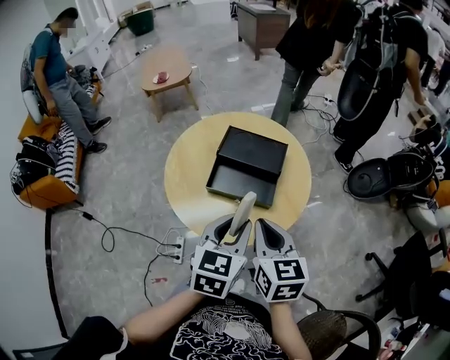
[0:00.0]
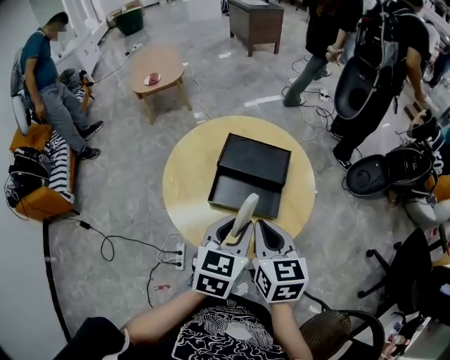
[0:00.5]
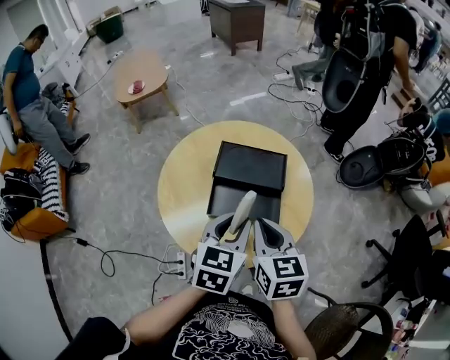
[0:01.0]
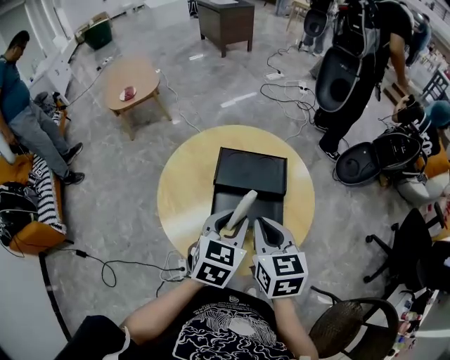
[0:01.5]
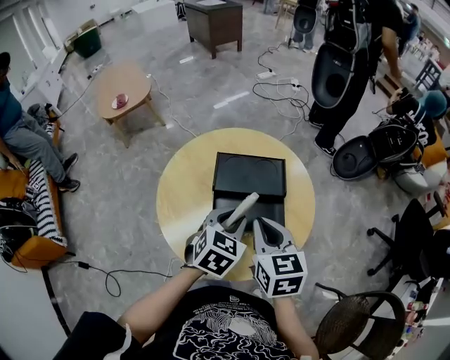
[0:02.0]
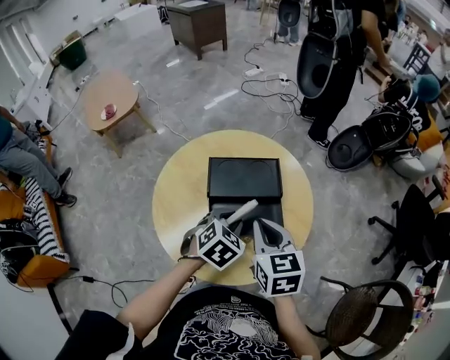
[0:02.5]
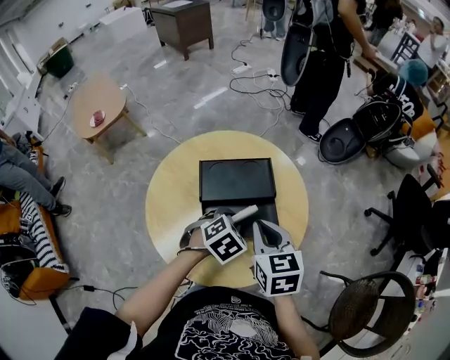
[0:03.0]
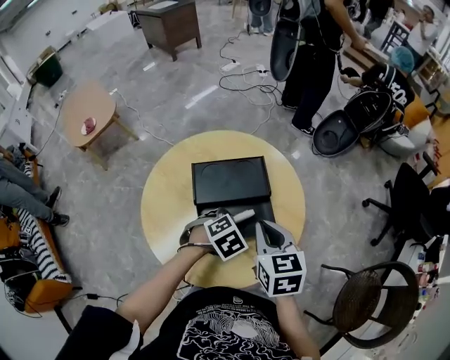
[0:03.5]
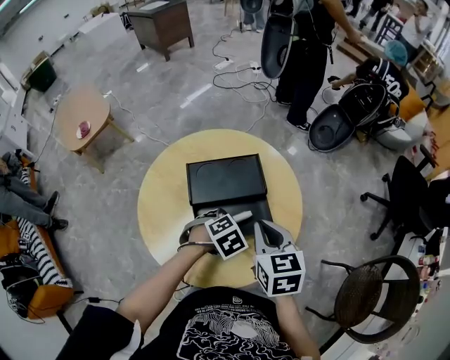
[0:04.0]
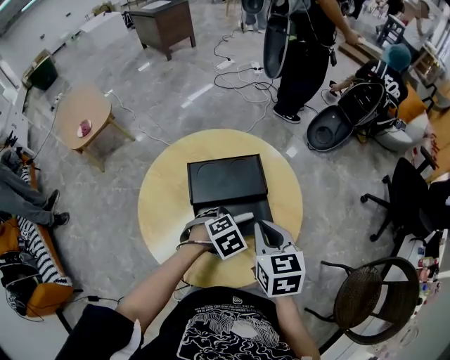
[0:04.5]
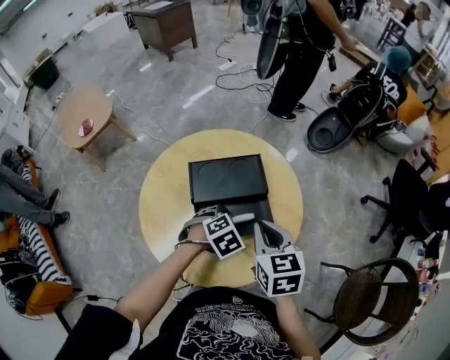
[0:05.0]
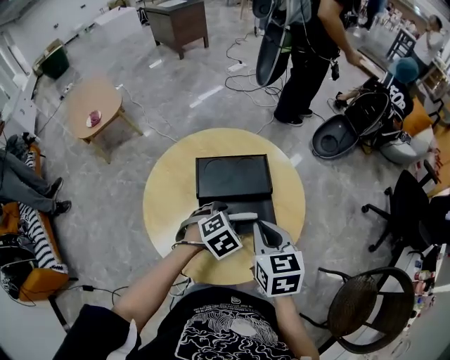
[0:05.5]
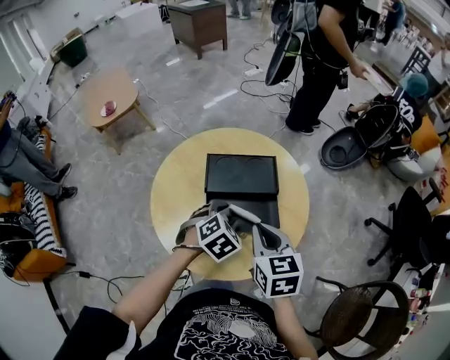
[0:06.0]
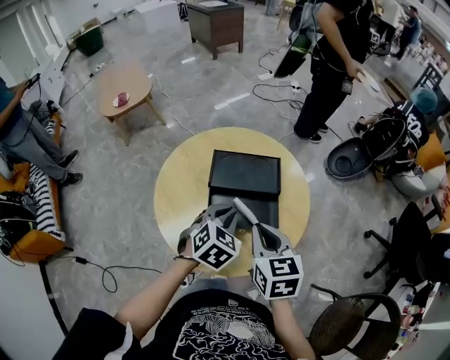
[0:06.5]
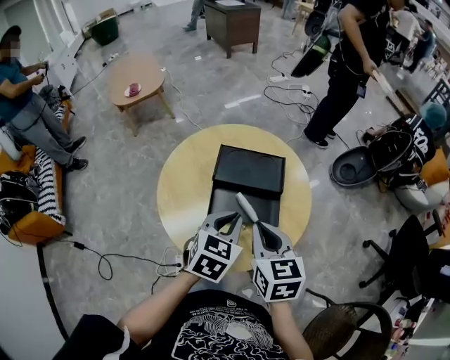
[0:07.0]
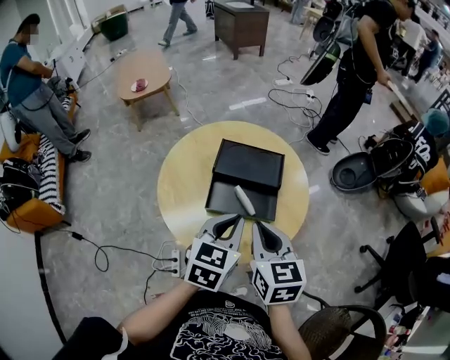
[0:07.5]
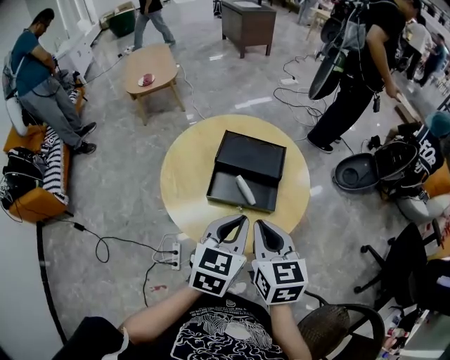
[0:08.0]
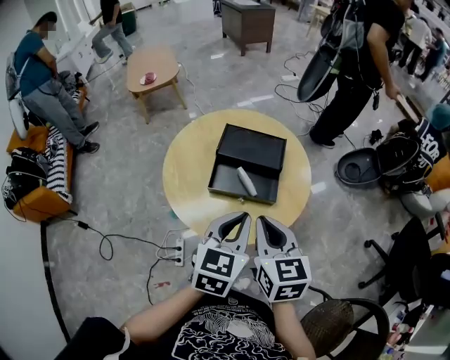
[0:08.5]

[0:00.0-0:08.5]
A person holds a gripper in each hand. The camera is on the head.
0:00.0 to 0:02.0: The left gripper shifts some 20 cm forward, downward and to the left, and turns by some 30 degrees, while the right gripper travels forward and to the left by approximately 15 cm.
0:02.0 to 0:04.0: The right gripper shifts by approximately 5 cm. The left gripper goes some 10 cm downward, and tilts its fingers some 30 degrees downward.
0:04.0 to 0:06.5: The right gripper moves roughly 5 cm; the left gripper shifts about 10 cm upward, points its fingers about 30 degrees further upward, and opens, then closes once more.
0:06.5 to 0:08.5: The right gripper heads backward, covering some 10 cm. The left gripper moves backward and upward, roughly 15 cm, and turns by roughly 30 degrees.

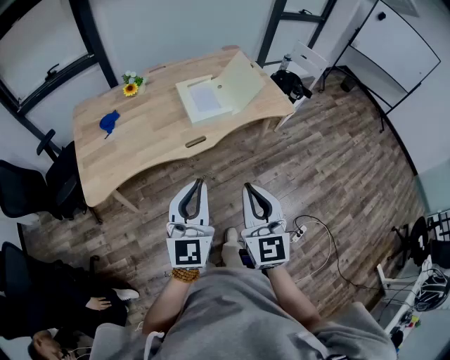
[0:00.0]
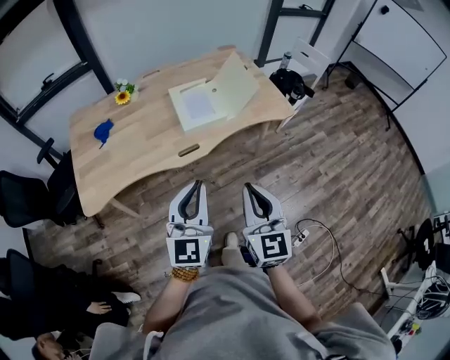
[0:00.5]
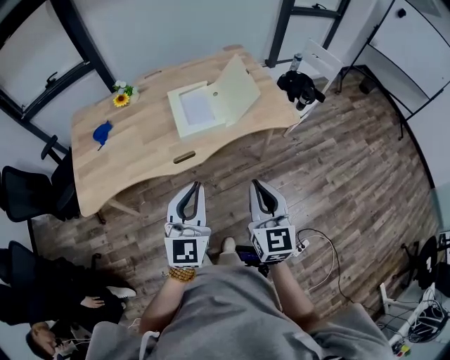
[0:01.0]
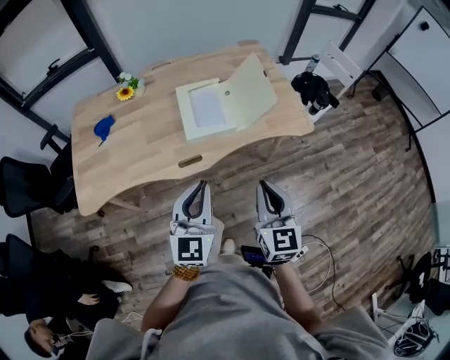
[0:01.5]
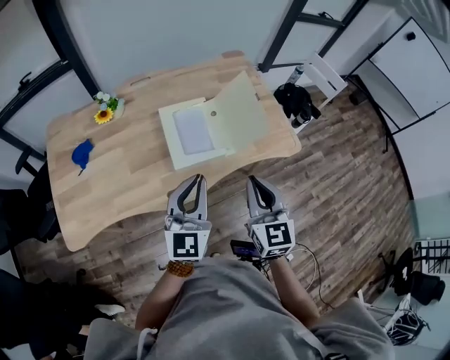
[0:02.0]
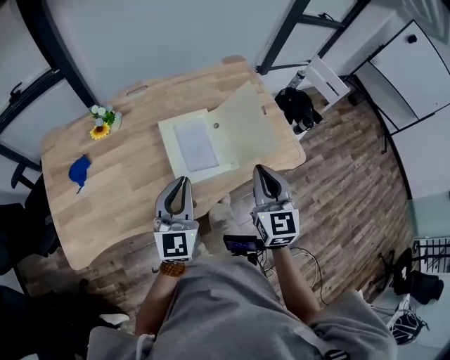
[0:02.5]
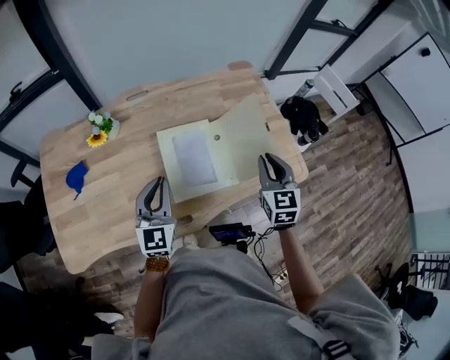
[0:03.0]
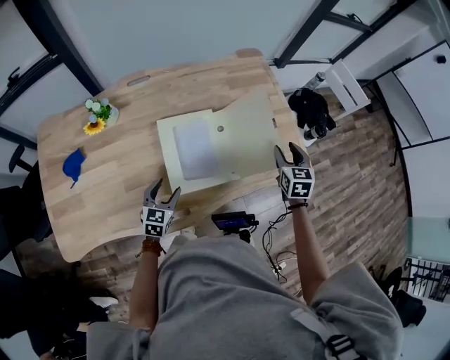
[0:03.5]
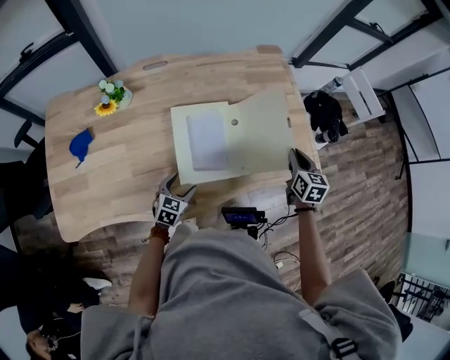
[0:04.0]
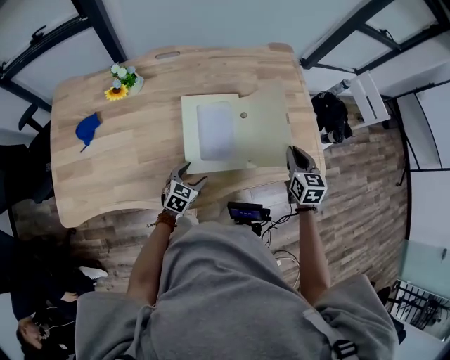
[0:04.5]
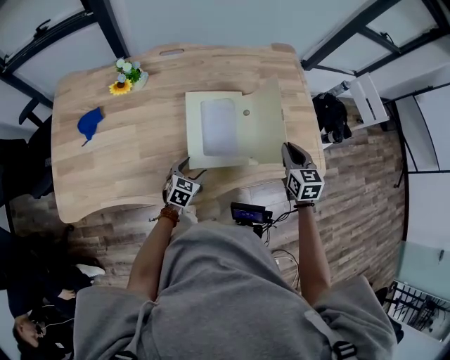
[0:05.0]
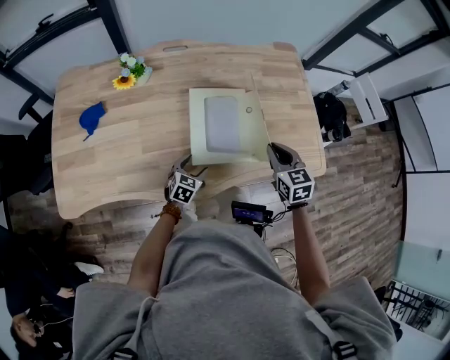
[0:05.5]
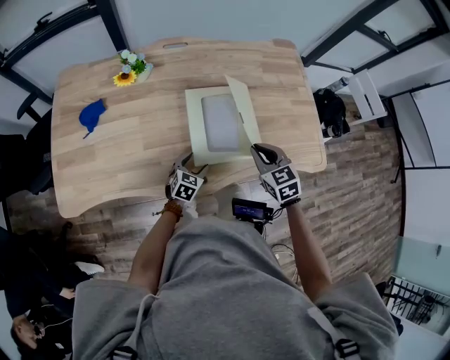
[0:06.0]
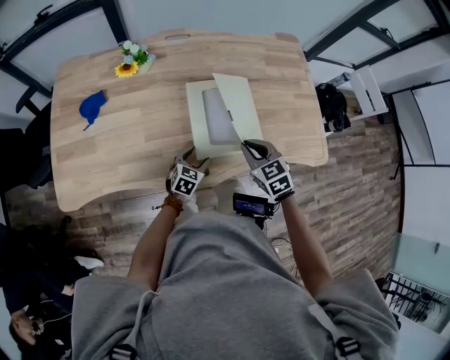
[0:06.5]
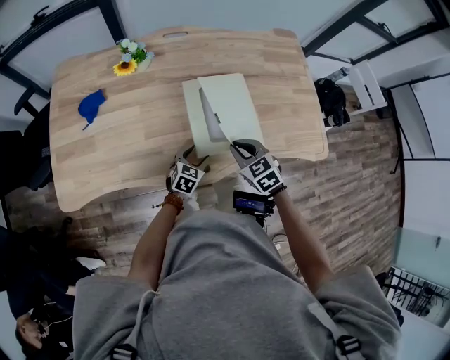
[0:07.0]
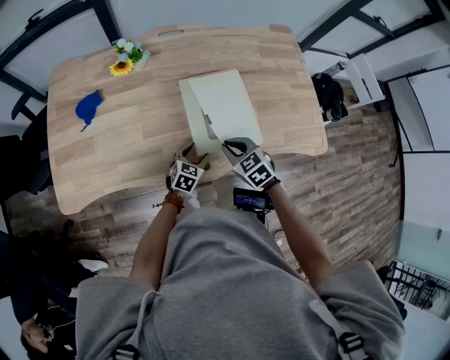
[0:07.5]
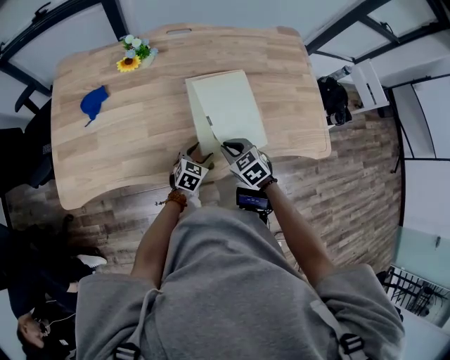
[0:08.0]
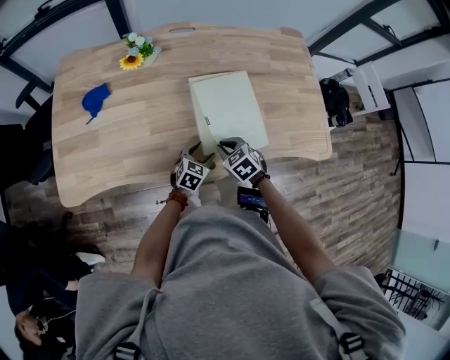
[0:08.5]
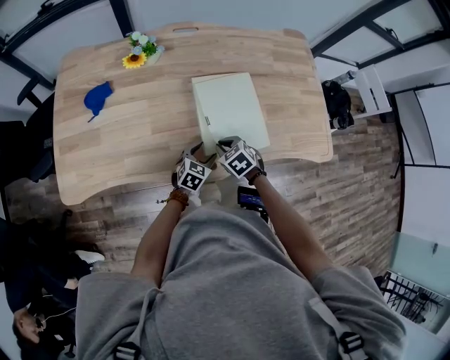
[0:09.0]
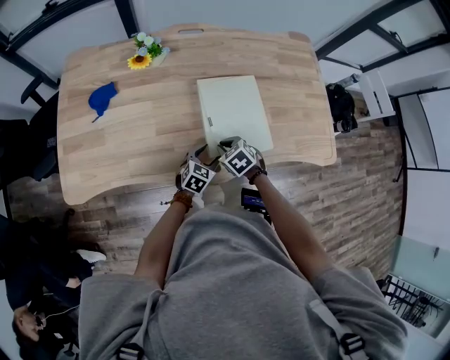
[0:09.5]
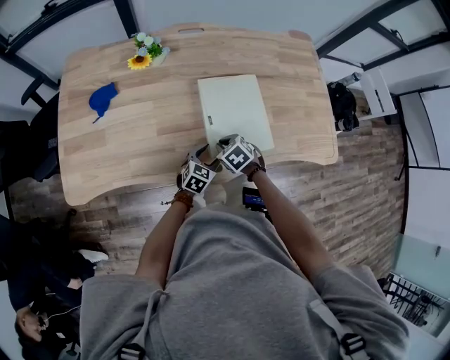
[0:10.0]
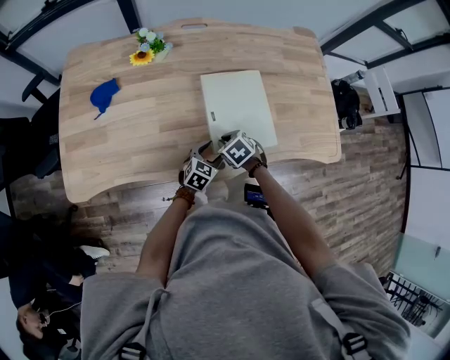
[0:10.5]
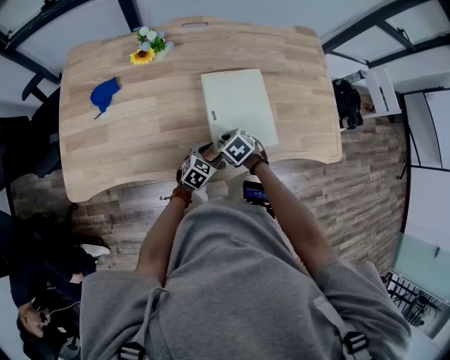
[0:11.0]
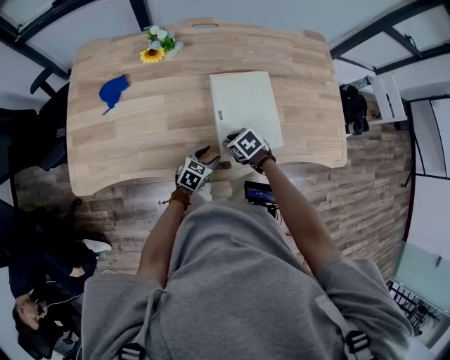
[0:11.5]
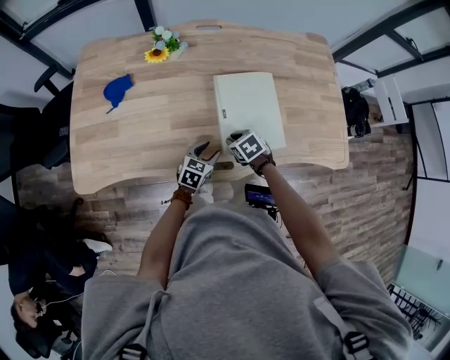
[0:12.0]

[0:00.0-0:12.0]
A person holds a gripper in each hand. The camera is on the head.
0:00.0 to 0:02.0: Both grippers move forward, roughly 35 cm.
0:02.0 to 0:04.0: The left gripper shifts approximately 35 cm downward, tilts its fingers about 40 degrees downward, and opens up; the right gripper heads forward, downward and to the right, covering roughly 35 cm, changes its angle by approximately 30 degrees, and opens, then closes once more.
0:04.0 to 0:06.0: The right gripper moves to the left and backward, roughly 25 cm, and rotates some 40 degrees.
0:06.0 to 0:08.0: The right gripper heads to the left and downward, covering some 15 cm.
0:08.0 to 0:10.0: The right gripper goes some 5 cm downward.
0:10.0 to 0:12.0: The left gripper heads to the left, covering about 5 cm.

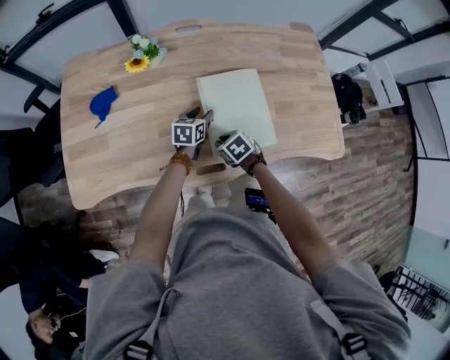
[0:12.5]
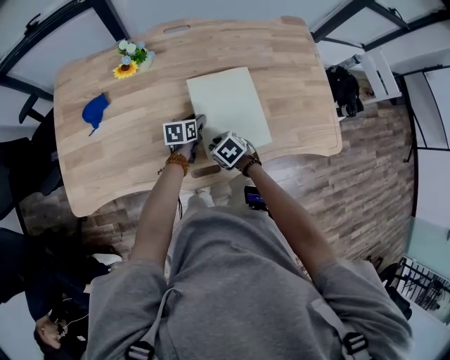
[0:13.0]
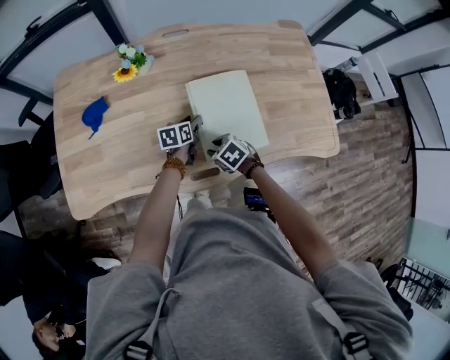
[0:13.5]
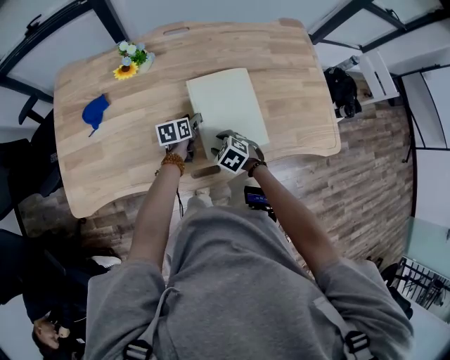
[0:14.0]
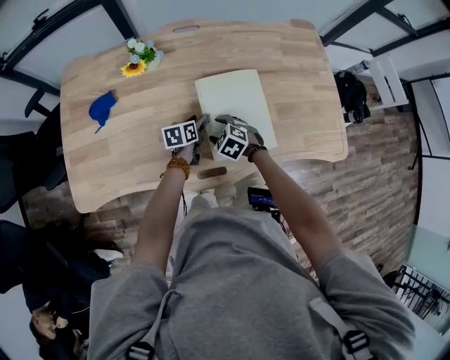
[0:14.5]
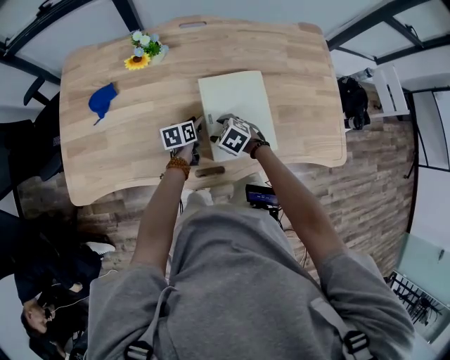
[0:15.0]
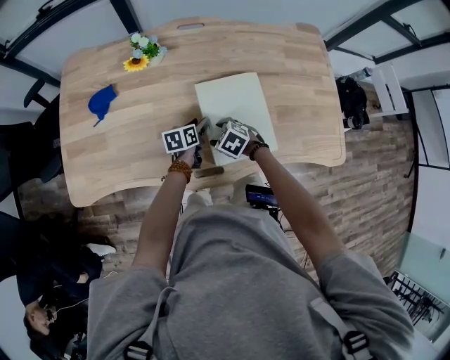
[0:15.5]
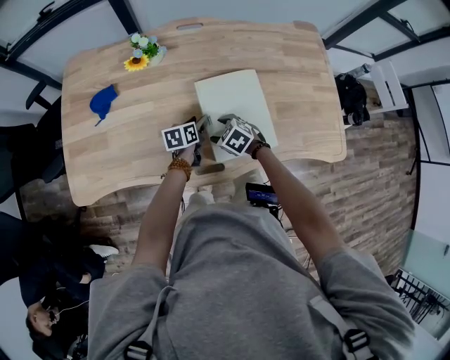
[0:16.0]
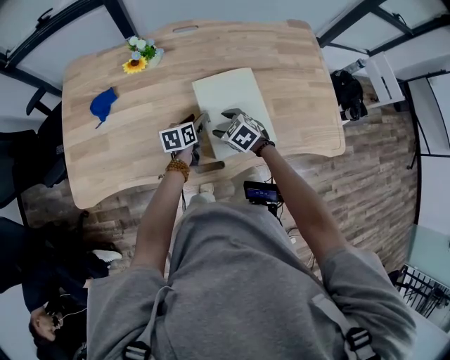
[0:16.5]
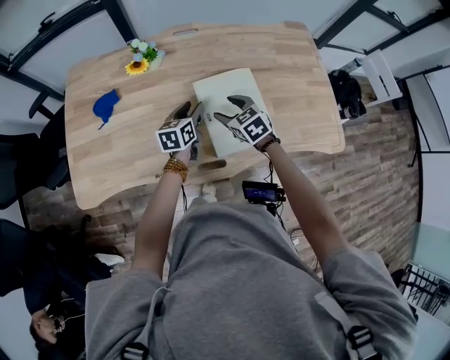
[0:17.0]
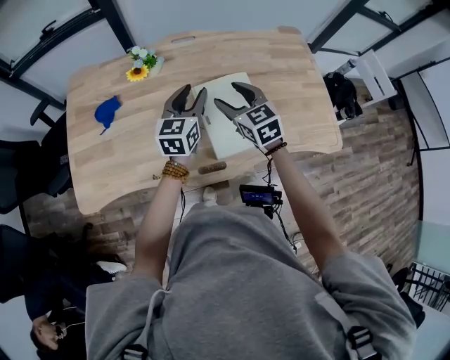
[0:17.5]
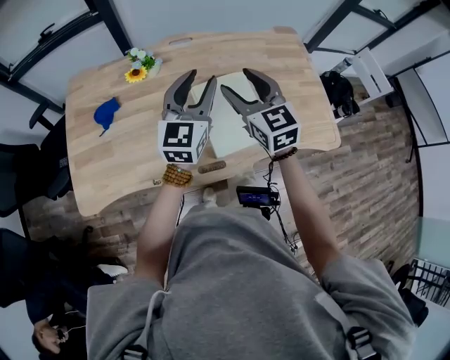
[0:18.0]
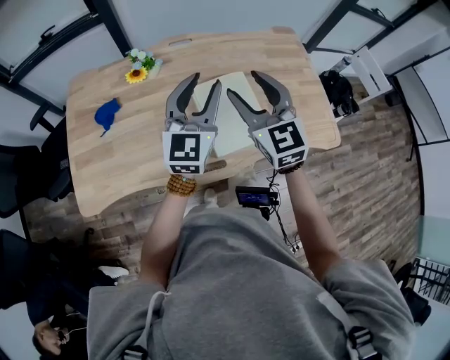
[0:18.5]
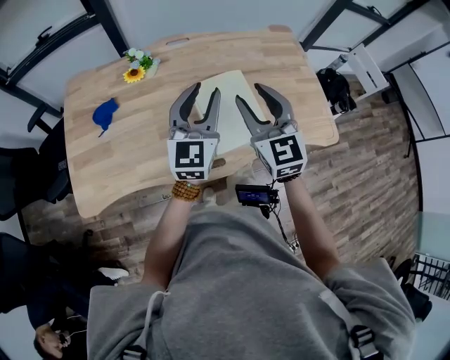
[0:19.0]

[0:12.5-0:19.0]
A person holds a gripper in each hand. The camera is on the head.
0:12.5 to 0:14.5: The right gripper shifts roughly 5 cm forward, turns by some 30 degrees, and opens up.
0:14.5 to 0:17.0: Both grippers travel together upward, roughly 10 cm. The right gripper swivels approximately 30 degrees.
0:17.0 to 0:19.0: Both grippers move upward, approximately 25 cm. The left gripper tips its fingers upward by approximately 30 degrees. The right gripper tips its fingers upward by some 40 degrees.
